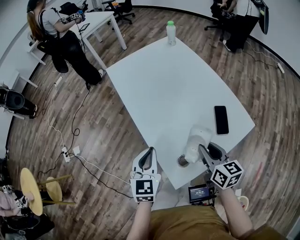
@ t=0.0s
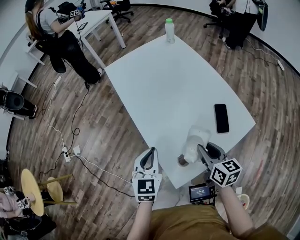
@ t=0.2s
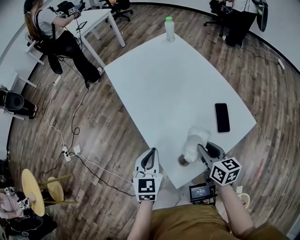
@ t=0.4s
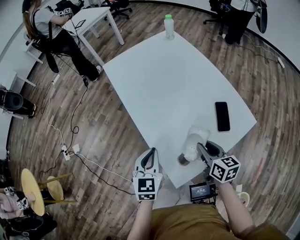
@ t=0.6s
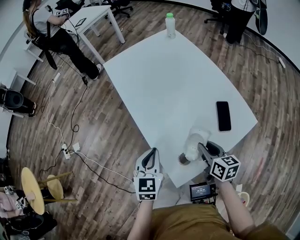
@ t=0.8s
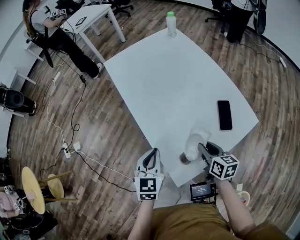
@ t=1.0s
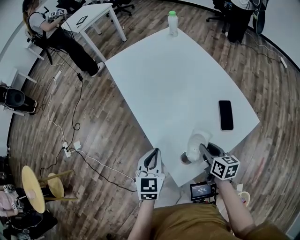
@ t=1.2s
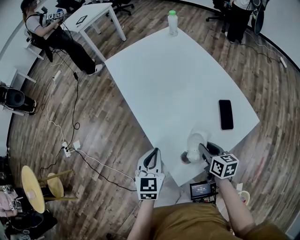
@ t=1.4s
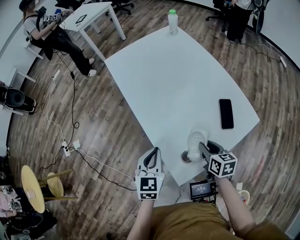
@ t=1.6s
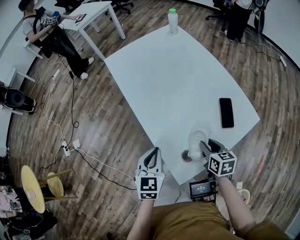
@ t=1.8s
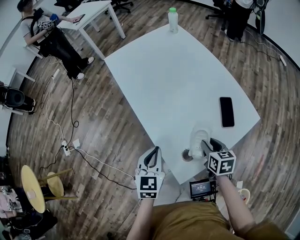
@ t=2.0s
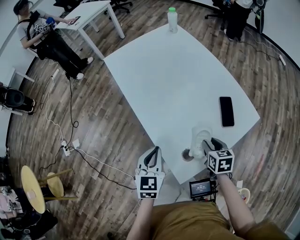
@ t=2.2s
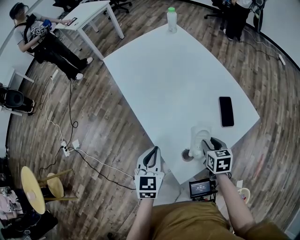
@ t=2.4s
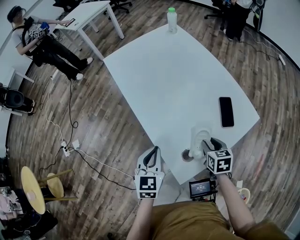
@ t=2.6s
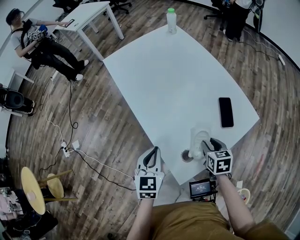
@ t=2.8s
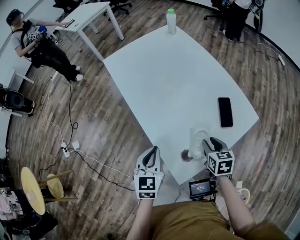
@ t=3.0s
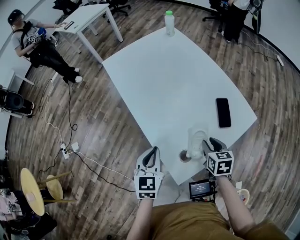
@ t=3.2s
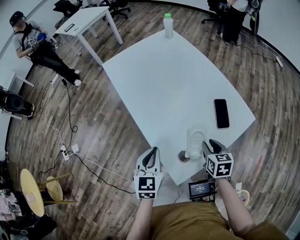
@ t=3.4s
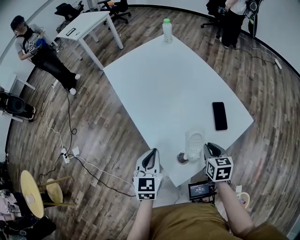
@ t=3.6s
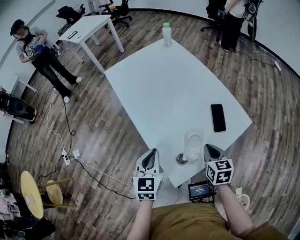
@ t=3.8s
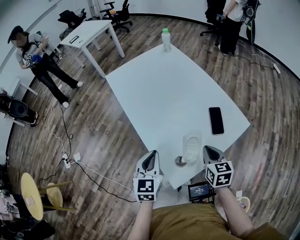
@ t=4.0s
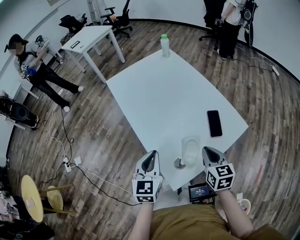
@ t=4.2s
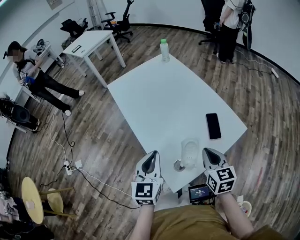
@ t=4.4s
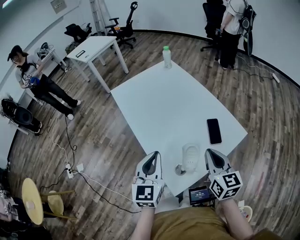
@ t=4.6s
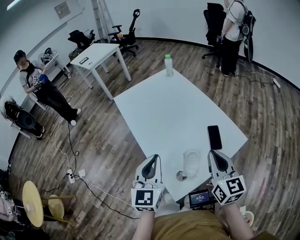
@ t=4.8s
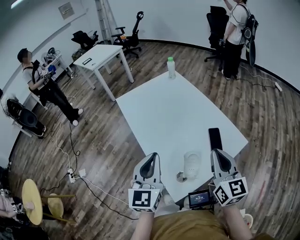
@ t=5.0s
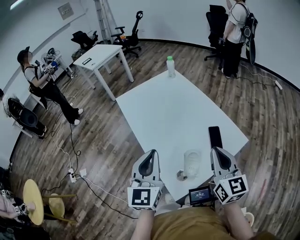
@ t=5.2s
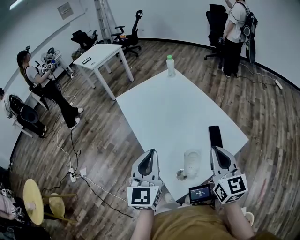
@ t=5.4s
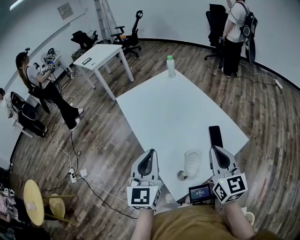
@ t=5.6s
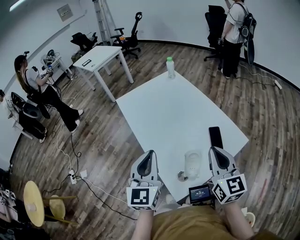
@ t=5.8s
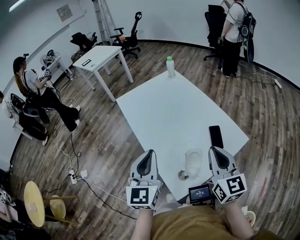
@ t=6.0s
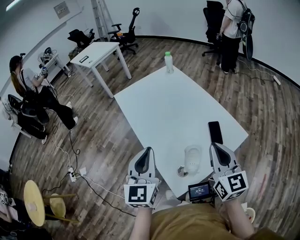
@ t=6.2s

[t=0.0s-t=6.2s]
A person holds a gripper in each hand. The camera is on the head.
t=0.0s to t=1.6s: The right gripper moves downward, roughly 10 cm; the left gripper shifts approximately 5 cm downward.
t=1.6s to t=3.2s: There are only small adjustments of the grippers.
t=3.2s to t=4.6s: Both grippers travel together upward, about 15 cm. The right gripper tilts its fingers approximately 30 degrees upward, and closes up.
t=4.6s to t=6.2s: The grippers both shift upward by some 5 cm.

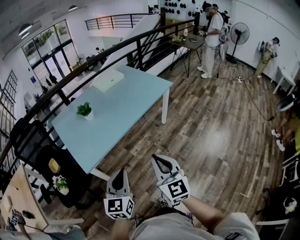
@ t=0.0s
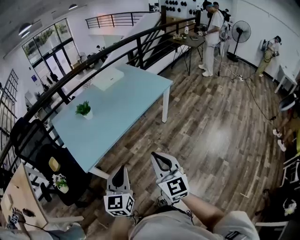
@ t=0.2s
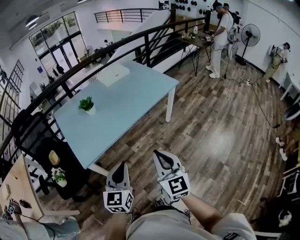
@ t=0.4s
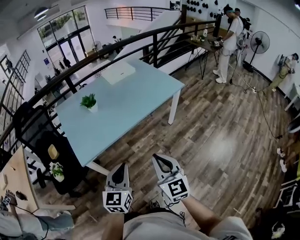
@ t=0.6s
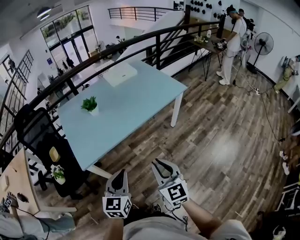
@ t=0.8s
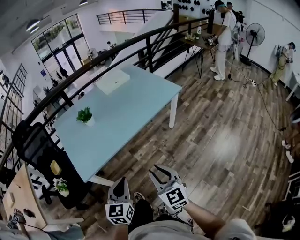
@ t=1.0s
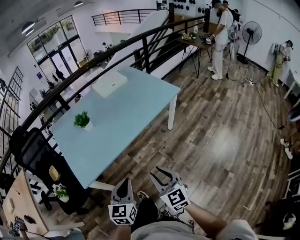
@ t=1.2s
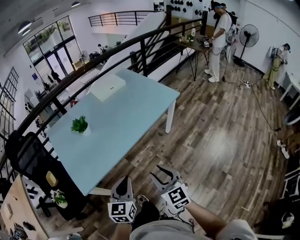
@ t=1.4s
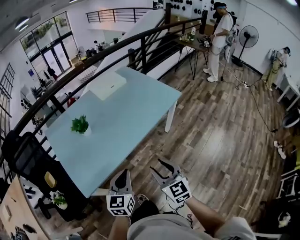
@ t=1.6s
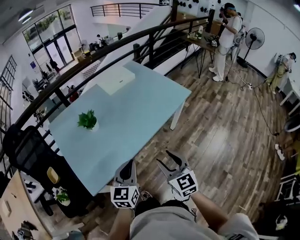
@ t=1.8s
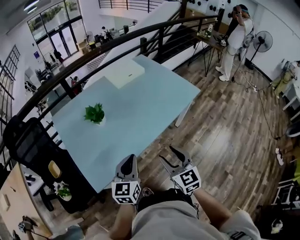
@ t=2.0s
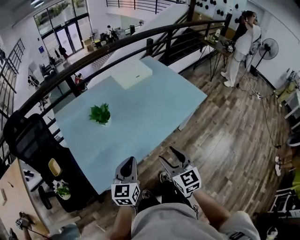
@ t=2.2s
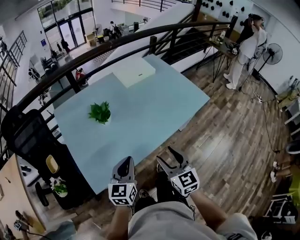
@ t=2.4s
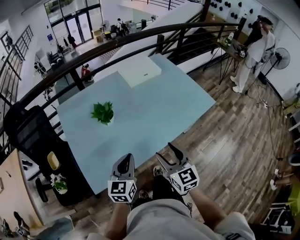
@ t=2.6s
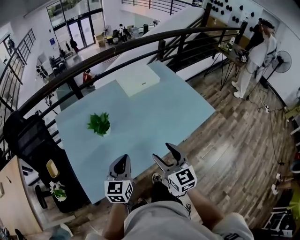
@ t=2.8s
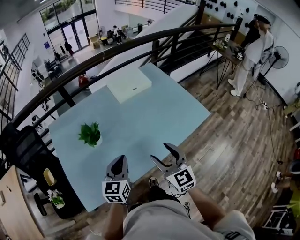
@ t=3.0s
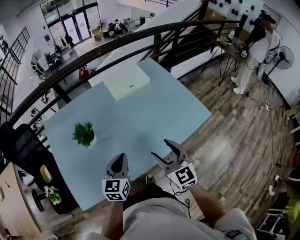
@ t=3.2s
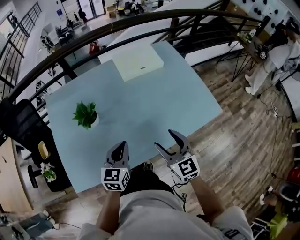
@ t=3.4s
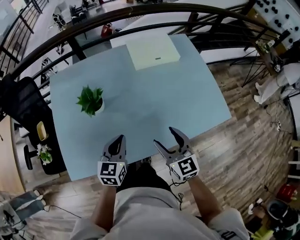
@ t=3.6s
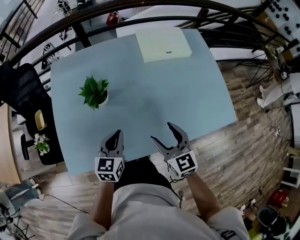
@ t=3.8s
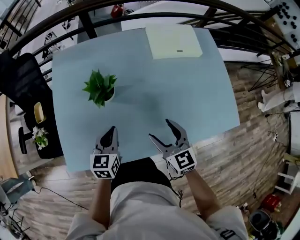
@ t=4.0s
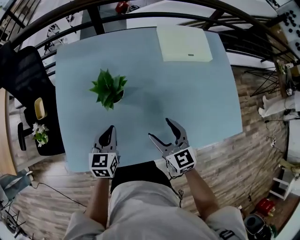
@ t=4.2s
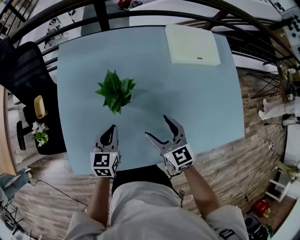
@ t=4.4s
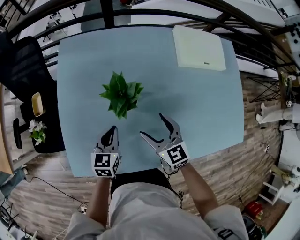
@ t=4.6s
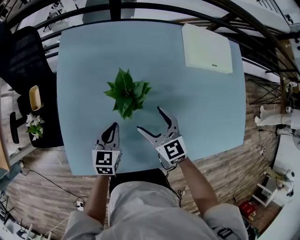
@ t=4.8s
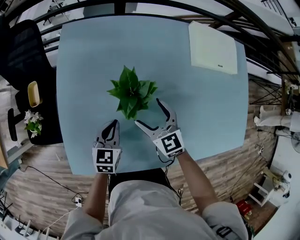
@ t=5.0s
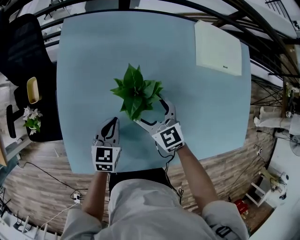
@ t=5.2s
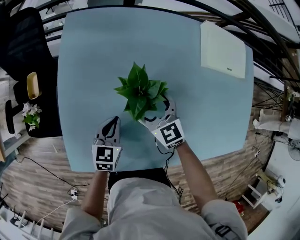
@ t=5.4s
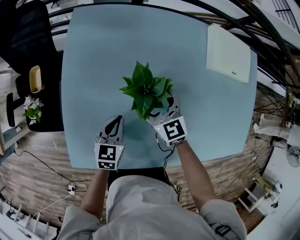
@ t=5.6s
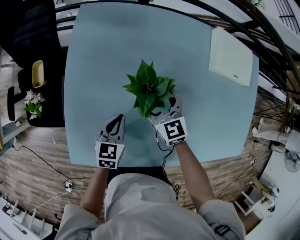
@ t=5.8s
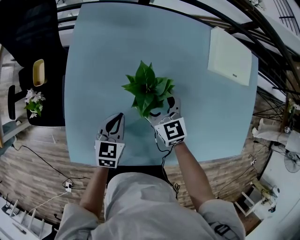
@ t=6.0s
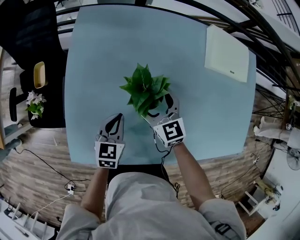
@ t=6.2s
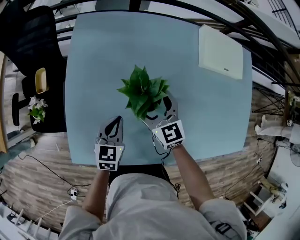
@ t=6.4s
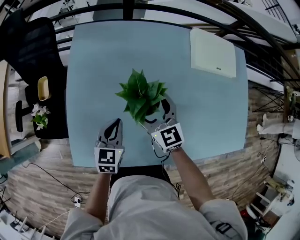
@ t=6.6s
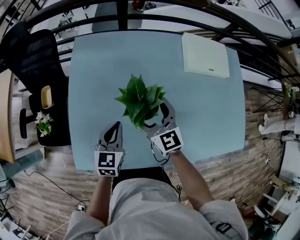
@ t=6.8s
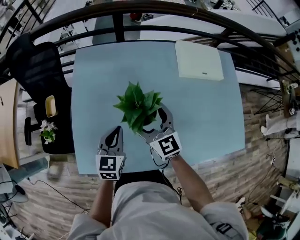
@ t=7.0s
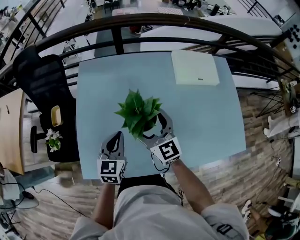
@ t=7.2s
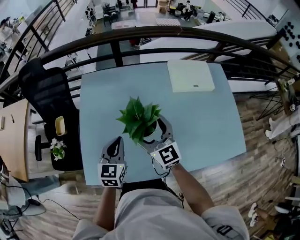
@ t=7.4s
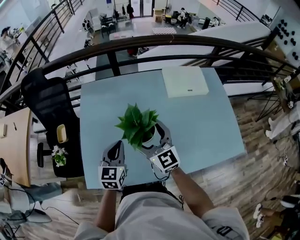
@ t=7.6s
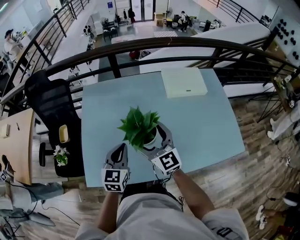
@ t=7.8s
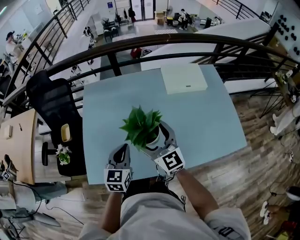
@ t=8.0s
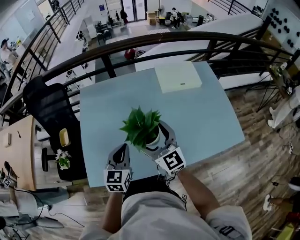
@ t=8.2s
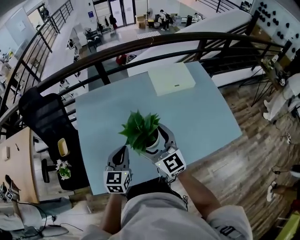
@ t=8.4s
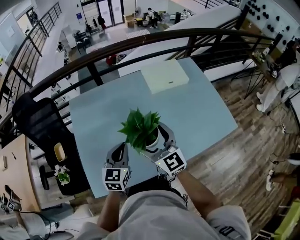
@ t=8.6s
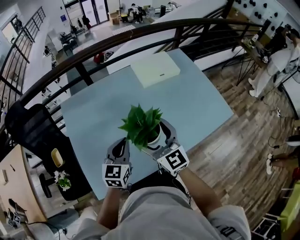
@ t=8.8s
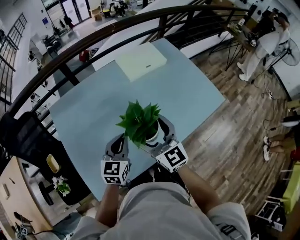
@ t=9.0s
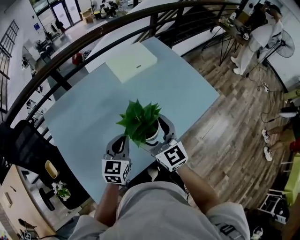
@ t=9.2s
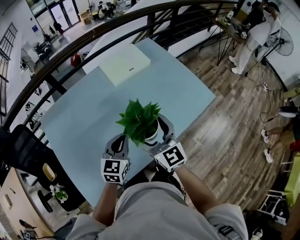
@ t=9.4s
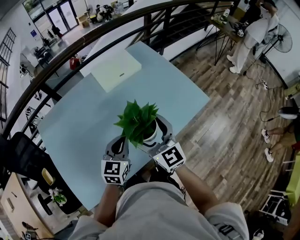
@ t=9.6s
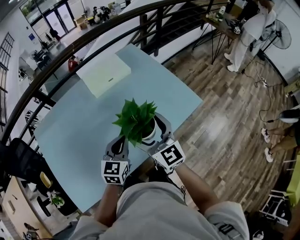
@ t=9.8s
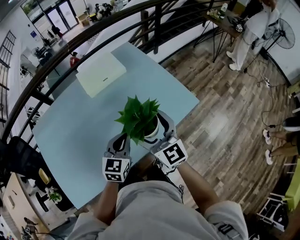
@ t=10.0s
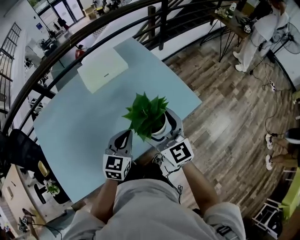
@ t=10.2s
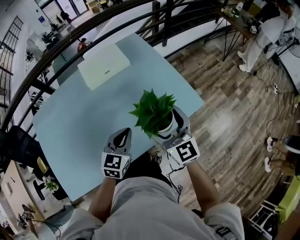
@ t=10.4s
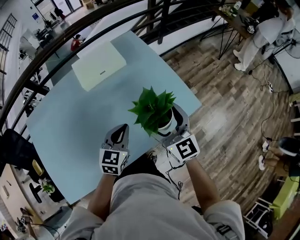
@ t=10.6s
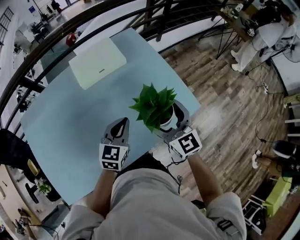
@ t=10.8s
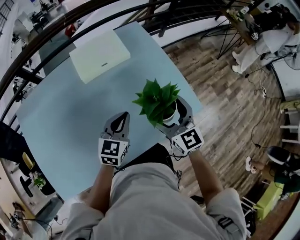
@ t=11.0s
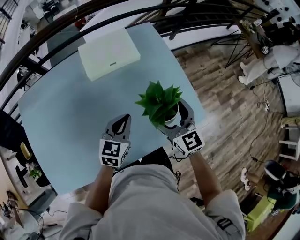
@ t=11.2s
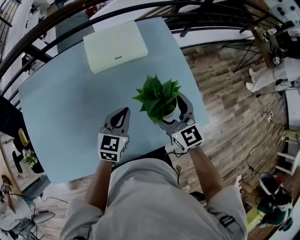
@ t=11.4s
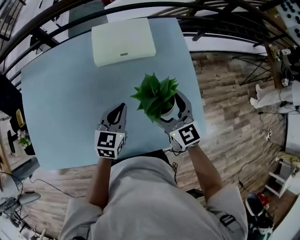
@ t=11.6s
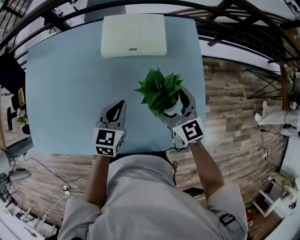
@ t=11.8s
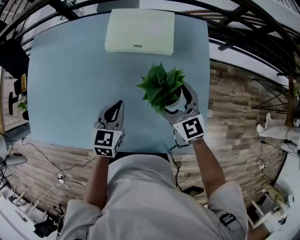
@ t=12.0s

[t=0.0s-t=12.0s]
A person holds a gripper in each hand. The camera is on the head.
t=0.0s to t=1.6s: The right gripper travels forward and downward by about 20 cm. The left gripper is displaced forward by roughly 20 cm.
t=1.6s to t=3.0s: Both grippers travel together forward, some 25 cm.
t=3.0s to t=4.4s: The left gripper shifts by some 25 cm, and changes its angle by roughly 30 degrees. Meanwhile the right gripper moves approximately 25 cm, and turns by approximately 30 degrees.
t=4.4s to t=6.0s: The right gripper shifts roughly 20 cm forward, to the left and downward. Meanwhile the left gripper travels downward by about 5 cm.
t=6.0s to t=7.6s: The left gripper moves upward, about 20 cm, and turns by roughly 20 degrees. Meanwhile the right gripper heads upward and backward, covering some 25 cm, and turns by about 20 degrees.
t=7.6s to t=9.0s: The right gripper ends up approximately 10 cm from where it was, and rotates about 20 degrees. The left gripper ends up about 10 cm from where it was, and swivels some 30 degrees.
t=9.0s to t=10.4s: The grippers both shift to the right by roughly 30 cm.
t=10.4s to t=12.0s: The left gripper moves about 15 cm, and swivels approximately 40 degrees. Meanwhile the right gripper shifts by some 25 cm, and changes its angle by approximately 40 degrees.

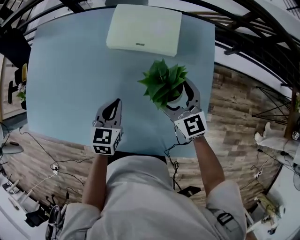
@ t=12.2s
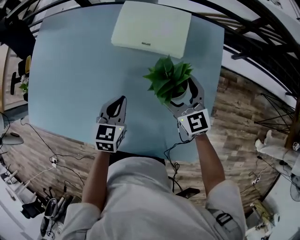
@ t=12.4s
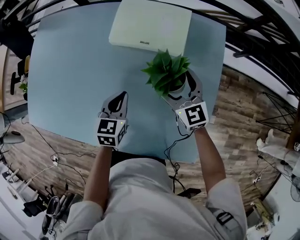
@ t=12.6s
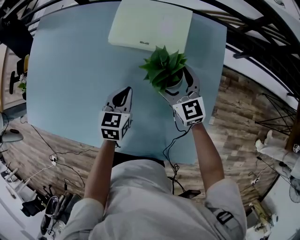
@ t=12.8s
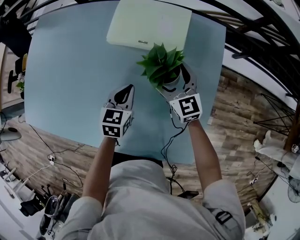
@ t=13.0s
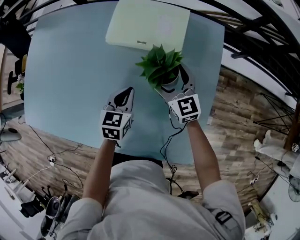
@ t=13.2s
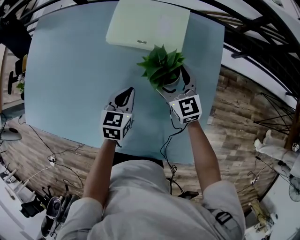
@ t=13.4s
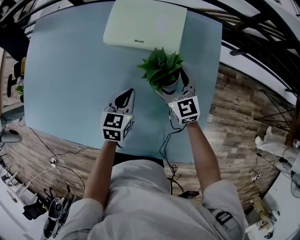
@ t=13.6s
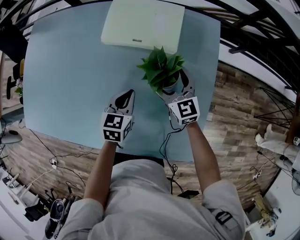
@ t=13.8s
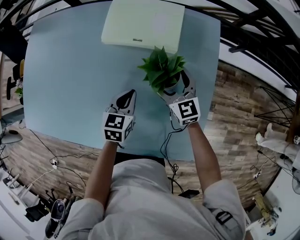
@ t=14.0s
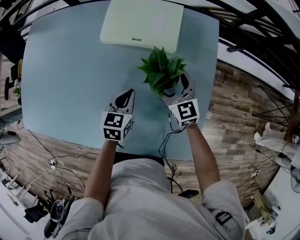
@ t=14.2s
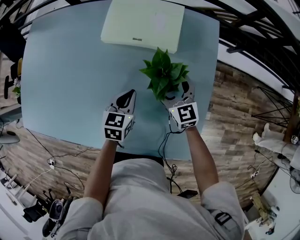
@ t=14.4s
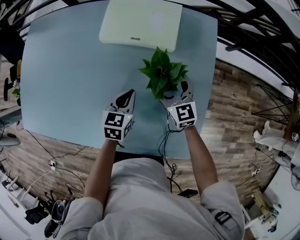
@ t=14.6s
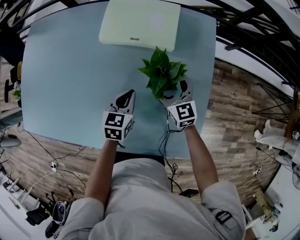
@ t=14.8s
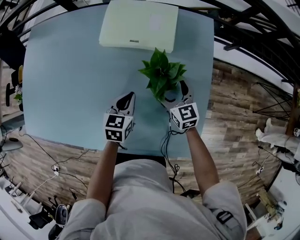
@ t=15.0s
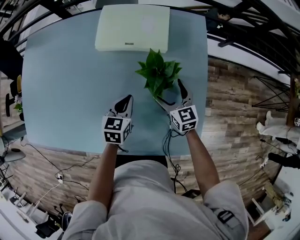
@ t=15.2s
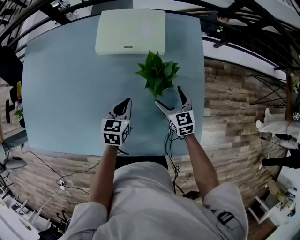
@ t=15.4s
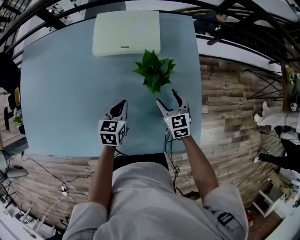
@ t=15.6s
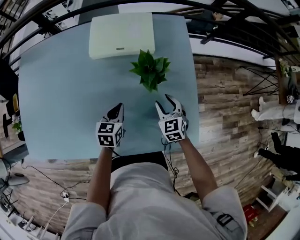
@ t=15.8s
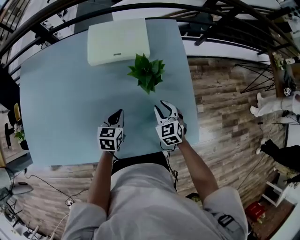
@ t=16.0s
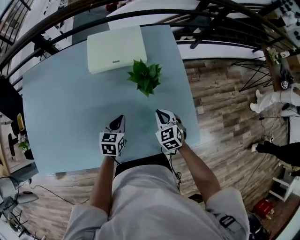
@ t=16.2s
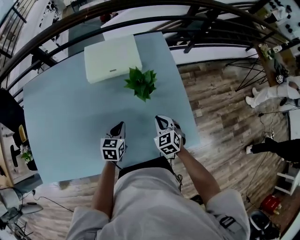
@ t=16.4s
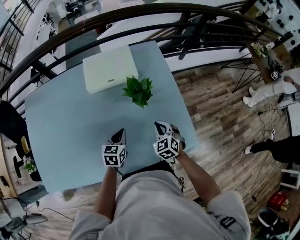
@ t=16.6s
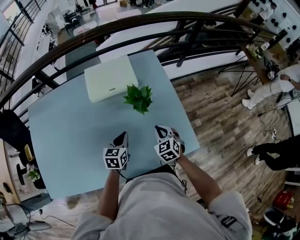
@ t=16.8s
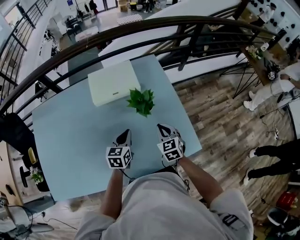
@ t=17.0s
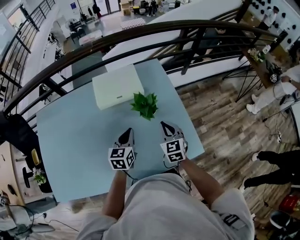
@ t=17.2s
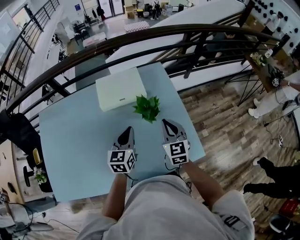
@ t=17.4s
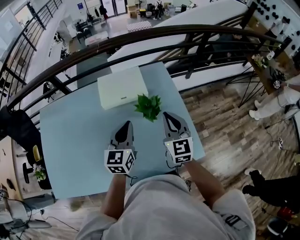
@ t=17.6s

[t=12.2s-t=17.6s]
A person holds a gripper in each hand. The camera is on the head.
t=12.2s to t=13.6s: The right gripper moves downward and forward, roughly 10 cm; the left gripper goes approximately 10 cm to the right and downward.
t=13.6s to t=15.0s: The right gripper changes place by about 5 cm.
t=15.0s to t=16.2s: The right gripper is displaced backward by about 15 cm, turns by about 30 degrees, and closes up, while the left gripper goes approximately 5 cm backward.
t=16.2s to t=17.6s: Both grippers travel together upward, approximately 25 cm. The right gripper tilts its fingers roughly 30 degrees upward. Meanwhile the left gripper changes its angle by roughly 30 degrees.
